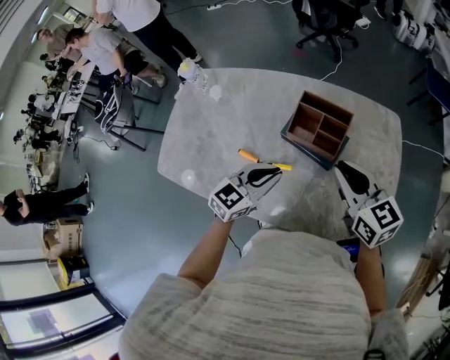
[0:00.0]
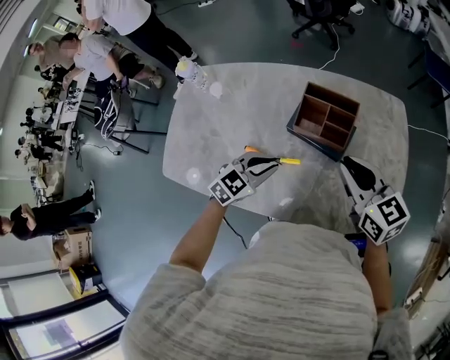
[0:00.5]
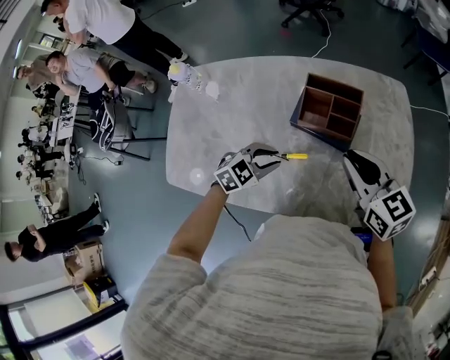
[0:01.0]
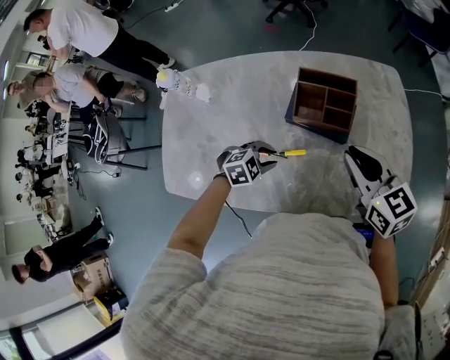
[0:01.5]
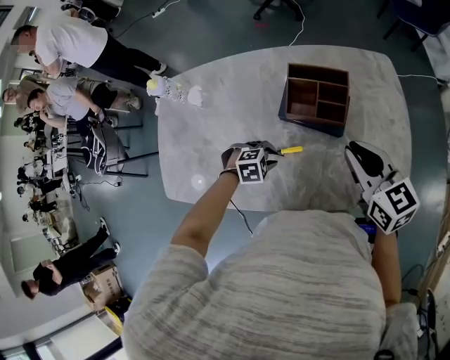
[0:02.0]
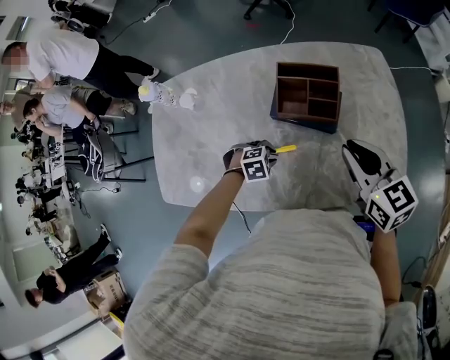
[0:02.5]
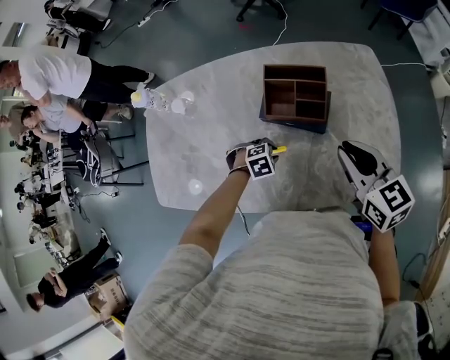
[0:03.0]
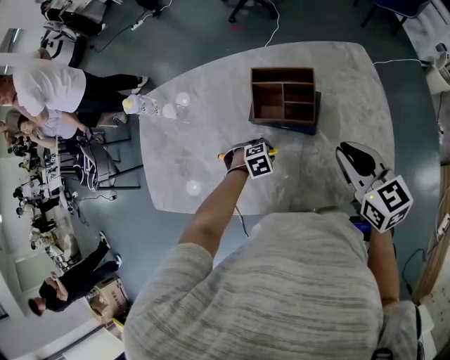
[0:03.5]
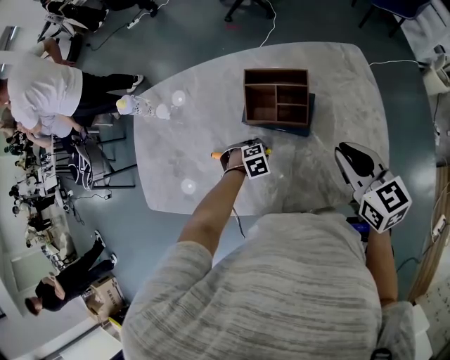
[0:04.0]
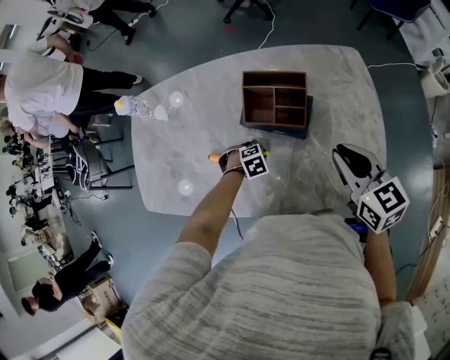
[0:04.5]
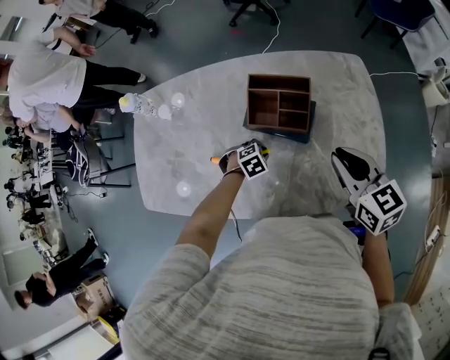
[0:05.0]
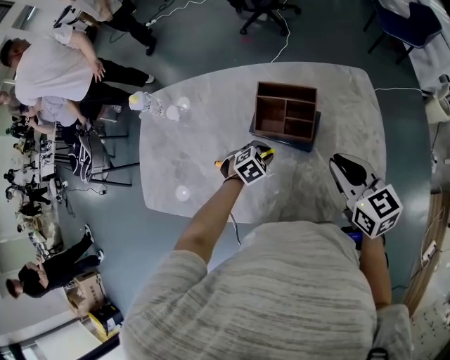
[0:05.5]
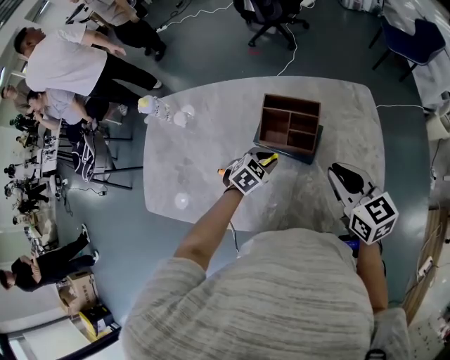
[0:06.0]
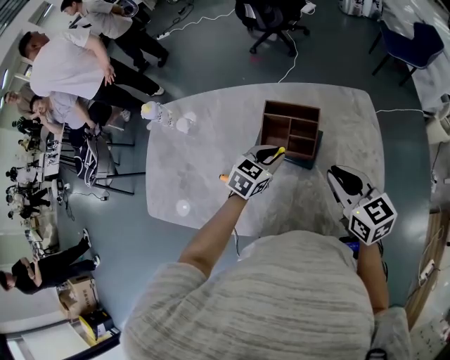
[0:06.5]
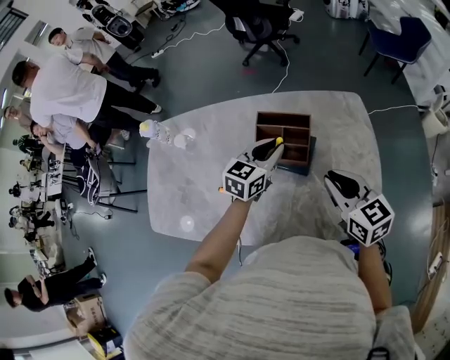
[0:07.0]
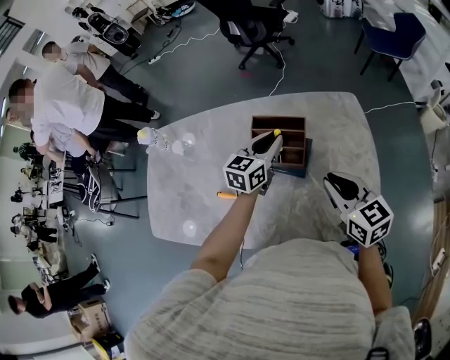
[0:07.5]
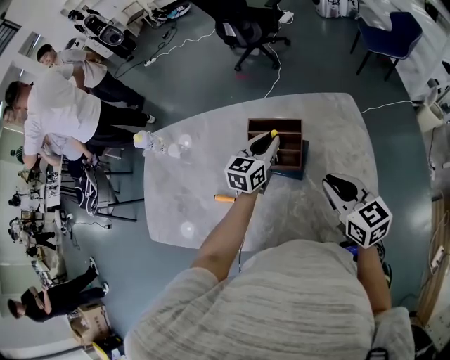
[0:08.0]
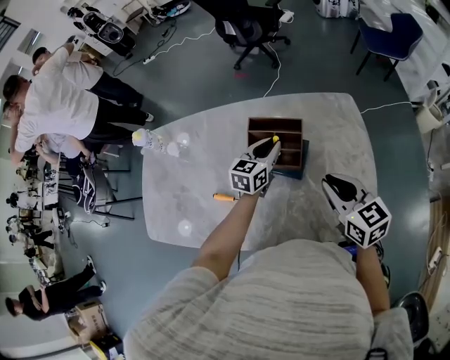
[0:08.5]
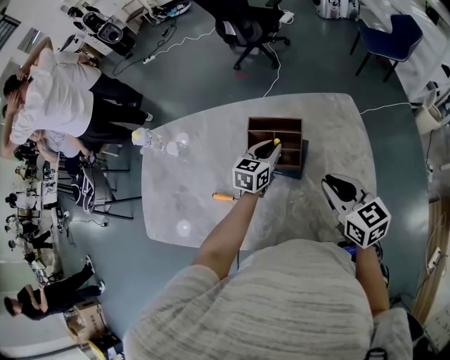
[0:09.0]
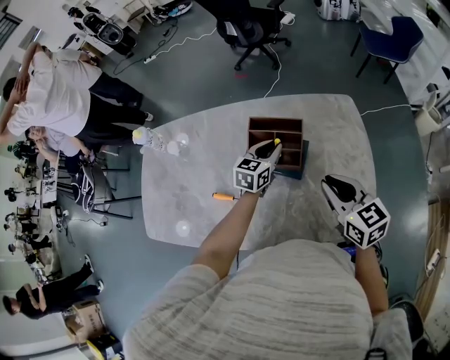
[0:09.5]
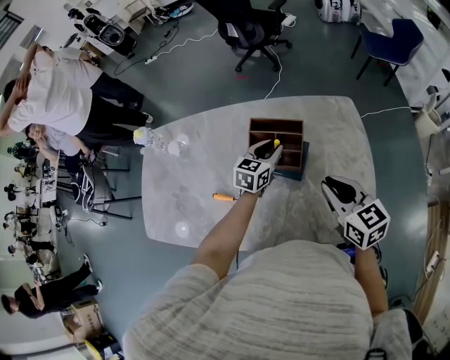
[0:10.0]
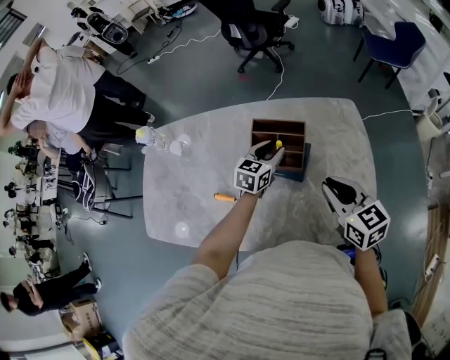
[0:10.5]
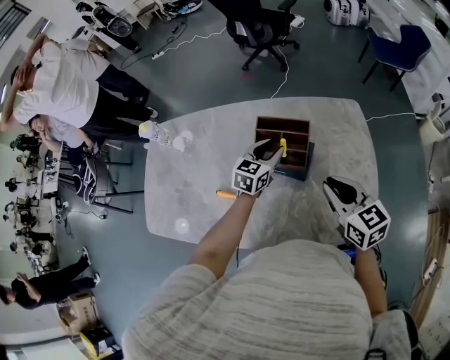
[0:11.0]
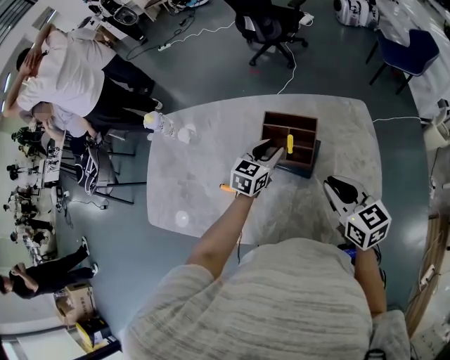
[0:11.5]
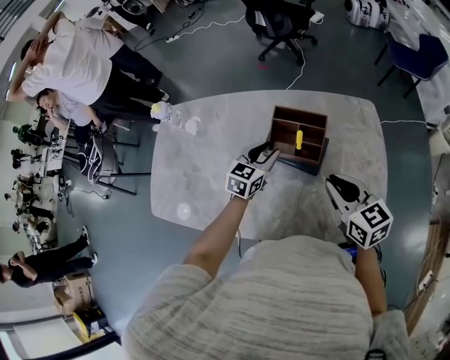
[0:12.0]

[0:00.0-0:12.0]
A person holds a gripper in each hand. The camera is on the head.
0:00.0 to 0:02.0: The left gripper goes about 20 cm downward, and tips its fingers downward by approximately 50 degrees.
0:02.0 to 0:04.0: The left gripper ends up about 10 cm from where it was; the right gripper shifts by about 10 cm.
0:04.0 to 0:06.0: The left gripper shifts approximately 15 cm upward, and rotates roughly 40 degrees.
0:06.0 to 0:08.0: The left gripper travels upward and forward by about 20 cm, and tips its fingers upward by approximately 40 degrees.
0:08.0 to 0:10.0: The left gripper shifts about 5 cm downward.
0:10.0 to 0:12.0: The left gripper moves to the left, some 10 cm.

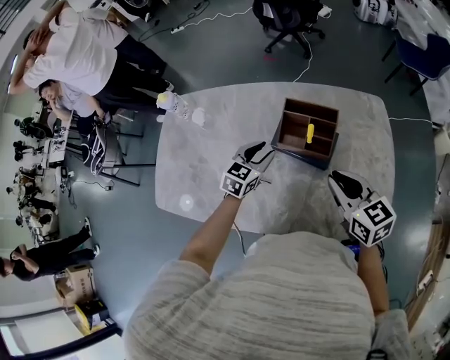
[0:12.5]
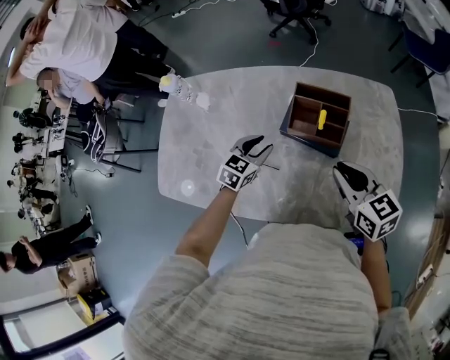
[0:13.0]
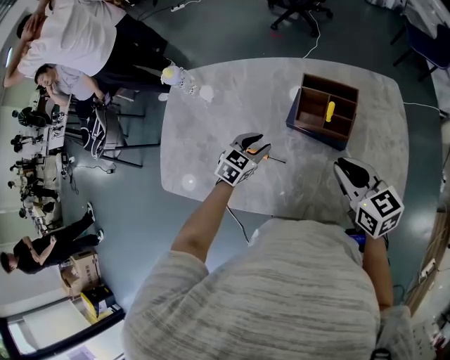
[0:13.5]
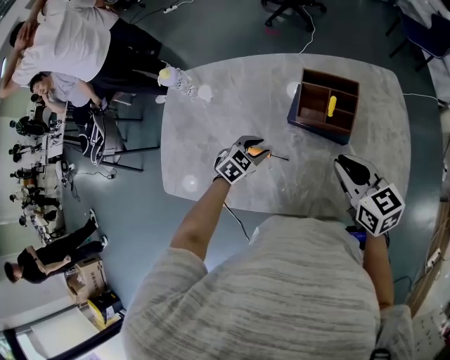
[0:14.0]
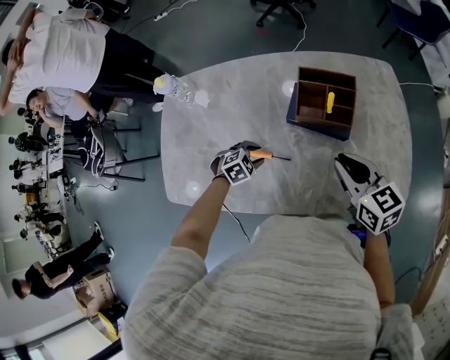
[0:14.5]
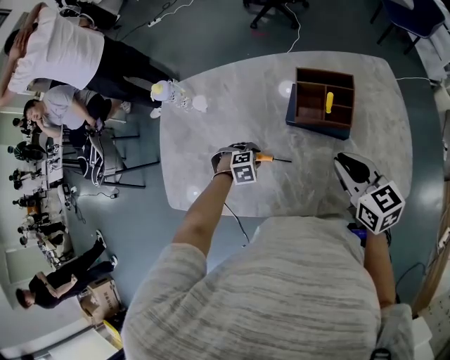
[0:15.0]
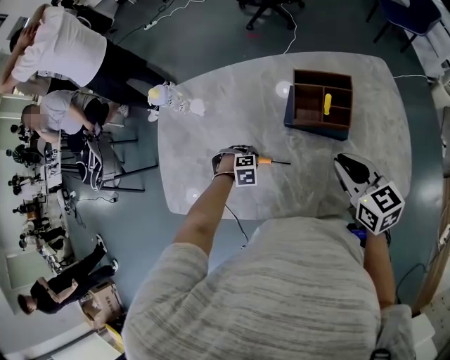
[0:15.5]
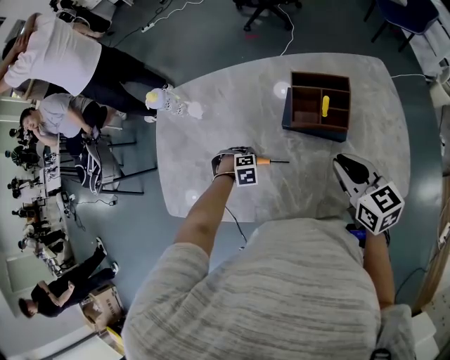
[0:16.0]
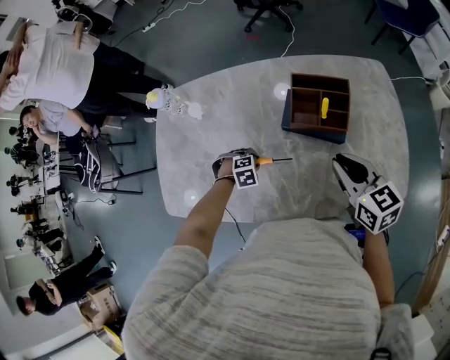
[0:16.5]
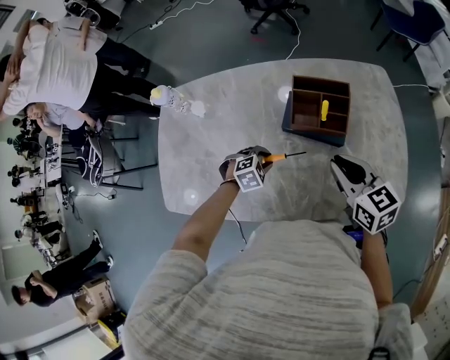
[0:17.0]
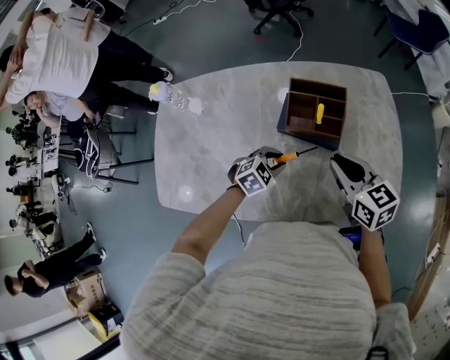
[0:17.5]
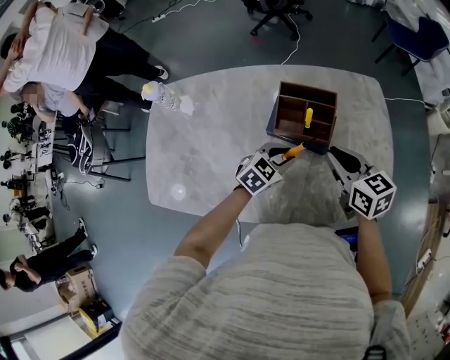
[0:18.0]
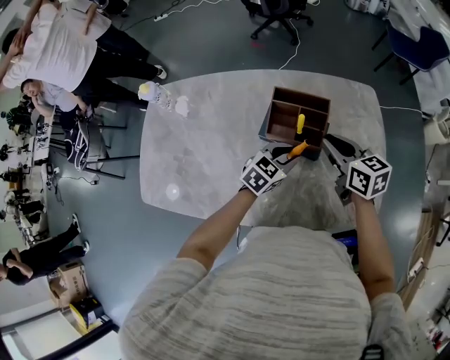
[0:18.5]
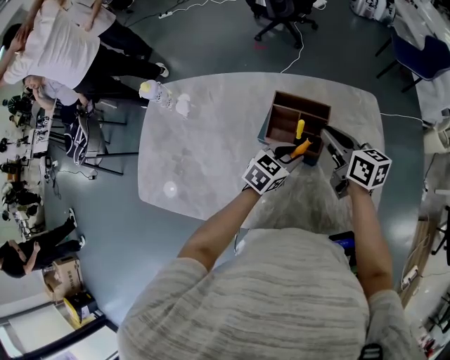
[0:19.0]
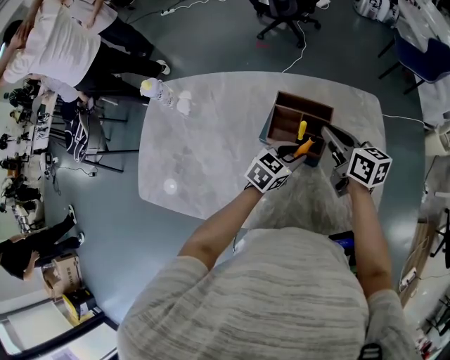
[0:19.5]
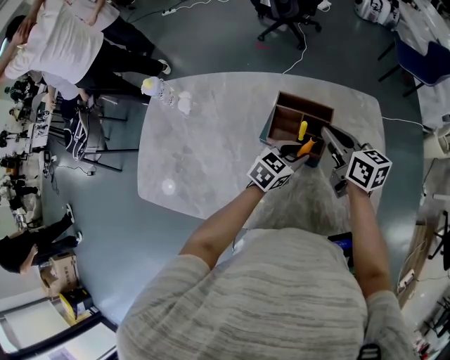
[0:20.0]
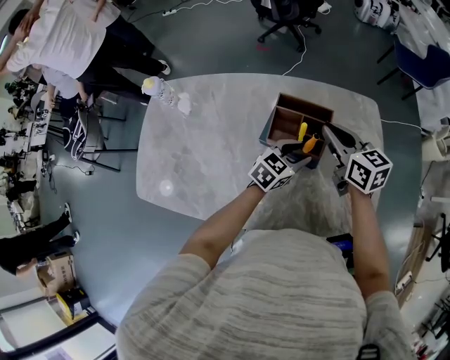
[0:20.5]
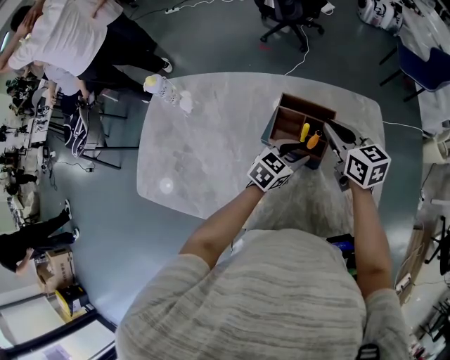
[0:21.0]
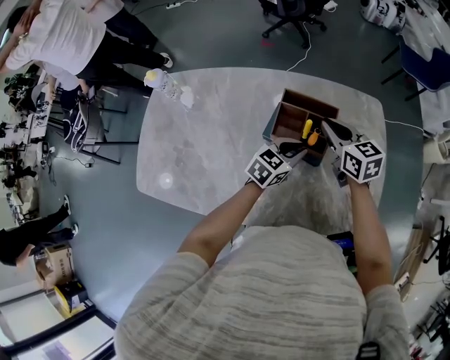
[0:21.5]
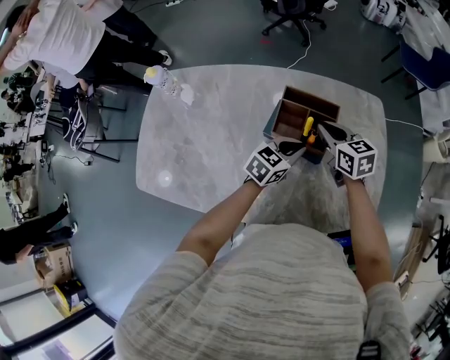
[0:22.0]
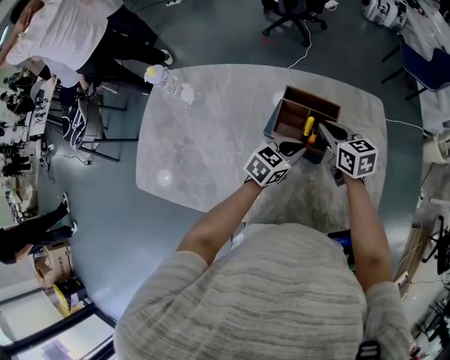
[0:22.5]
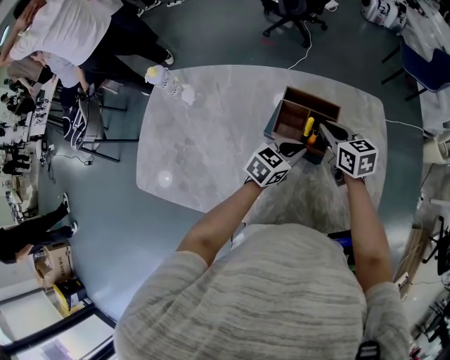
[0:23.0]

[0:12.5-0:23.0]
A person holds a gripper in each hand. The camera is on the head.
0:12.5 to 0:14.5: The left gripper shifts about 20 cm downward, to the left and backward, and tips its fingers downward by about 40 degrees, while the right gripper travels to the left by approximately 5 cm.
0:14.5 to 0:16.5: The left gripper turns by about 20 degrees.
0:16.5 to 0:19.0: The right gripper ends up about 15 cm from where it was, while the left gripper shifts by about 35 cm, and angles its fingers upward, by roughly 50 degrees.
0:19.0 to 0:21.0: The grippers move only a little.
0:21.0 to 0:23.0: The right gripper is displaced downward by roughly 5 cm. The left gripper closes its fingers.

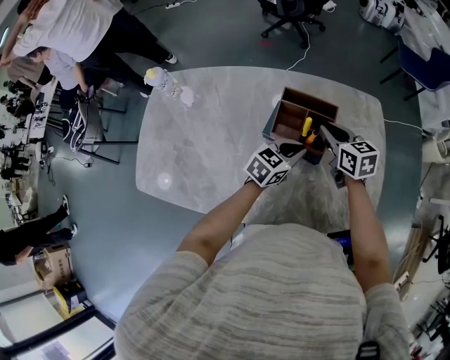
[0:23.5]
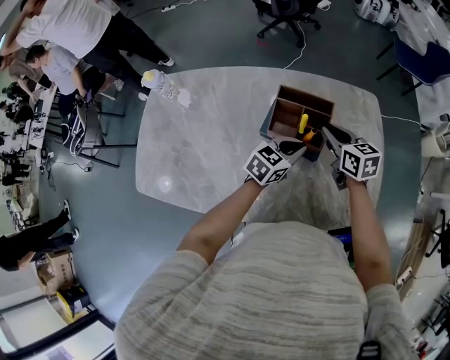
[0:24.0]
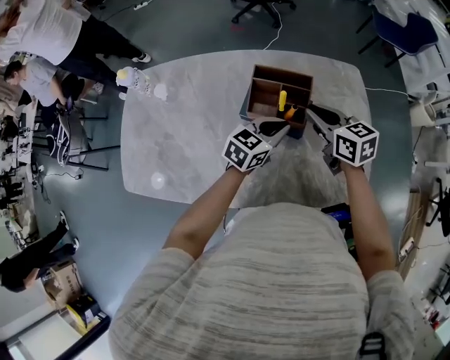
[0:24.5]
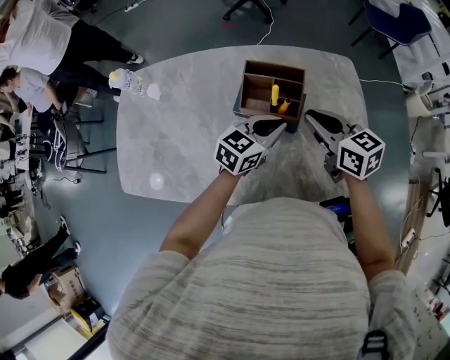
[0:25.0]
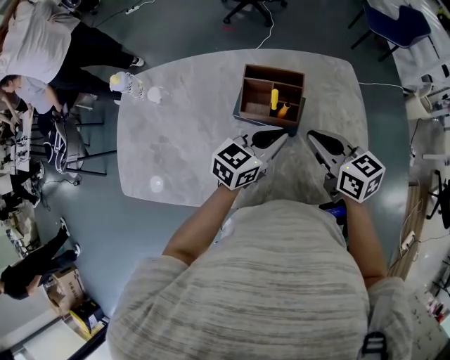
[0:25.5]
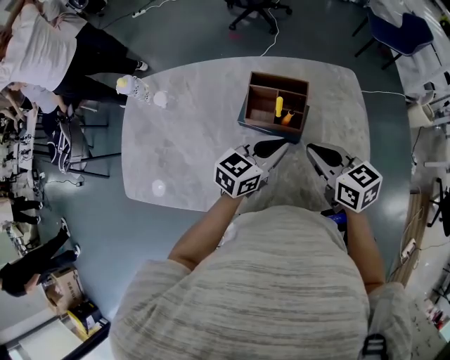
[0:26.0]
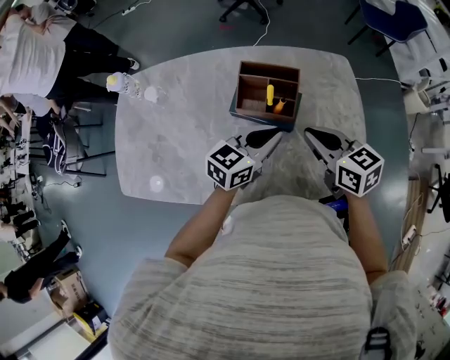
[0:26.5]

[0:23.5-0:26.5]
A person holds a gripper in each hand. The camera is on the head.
0:23.5 to 0:25.0: The left gripper shifts by roughly 5 cm; the right gripper shifts about 10 cm backward and upward.
0:25.0 to 0:26.5: The grippers stay close to where they were, moving slightly.

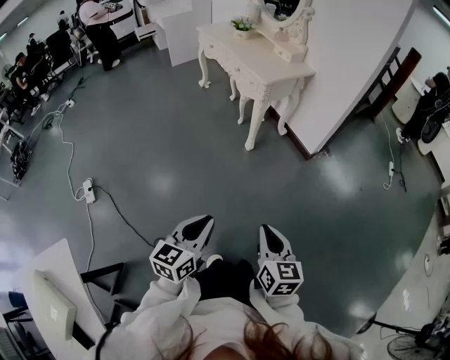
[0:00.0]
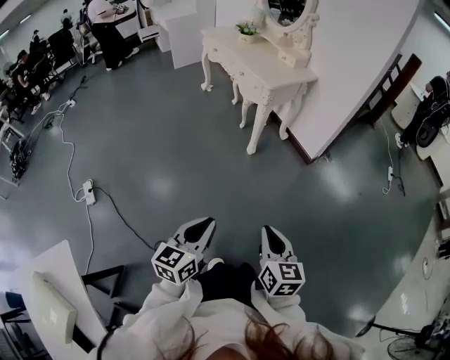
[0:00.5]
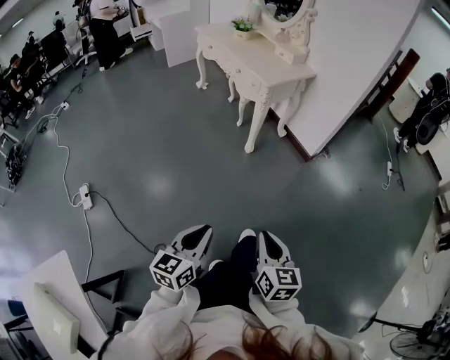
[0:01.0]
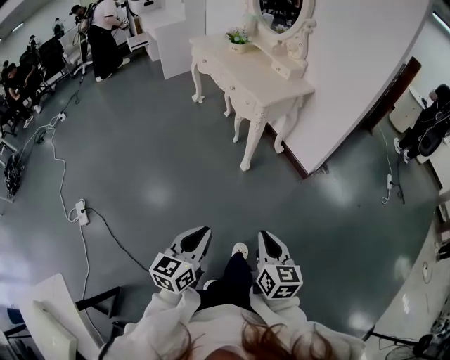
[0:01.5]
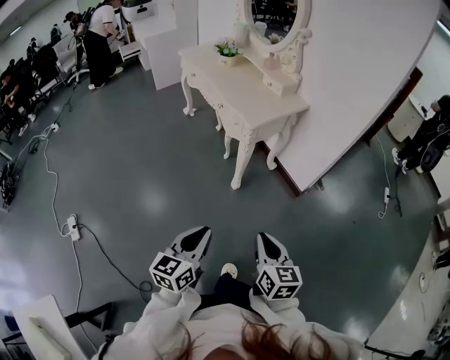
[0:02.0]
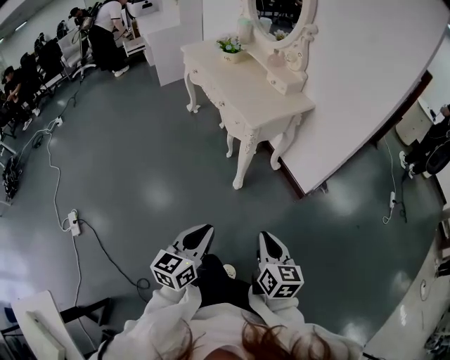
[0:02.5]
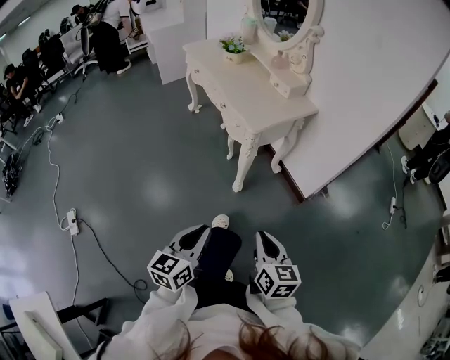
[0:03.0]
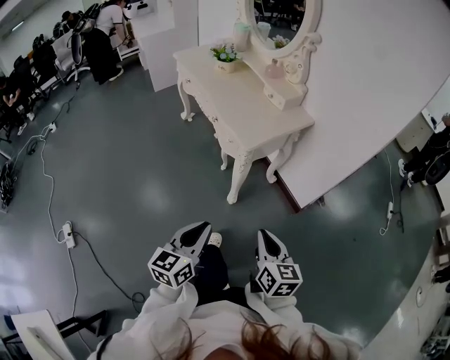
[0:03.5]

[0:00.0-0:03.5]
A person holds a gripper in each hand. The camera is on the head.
0:00.0 to 0:02.0: Both grippers move forward, about 25 cm.
0:02.0 to 0:03.5: Both grippers travel together forward, approximately 15 cm.
